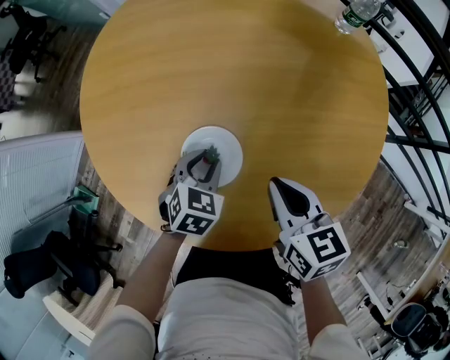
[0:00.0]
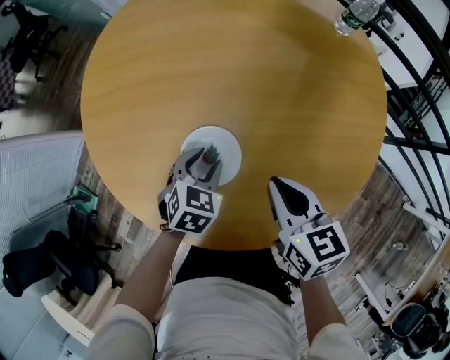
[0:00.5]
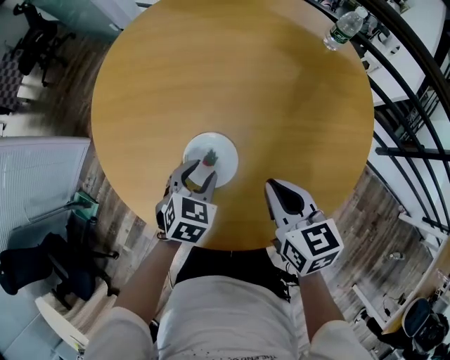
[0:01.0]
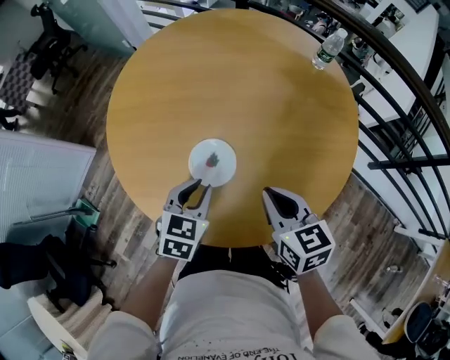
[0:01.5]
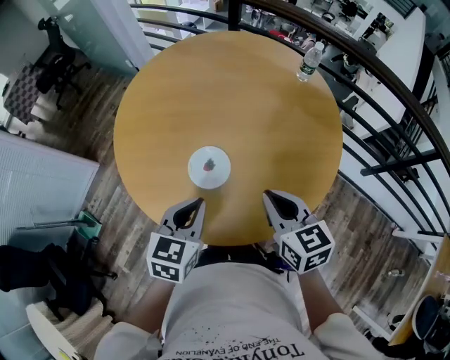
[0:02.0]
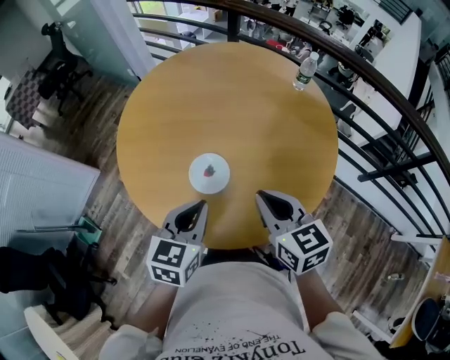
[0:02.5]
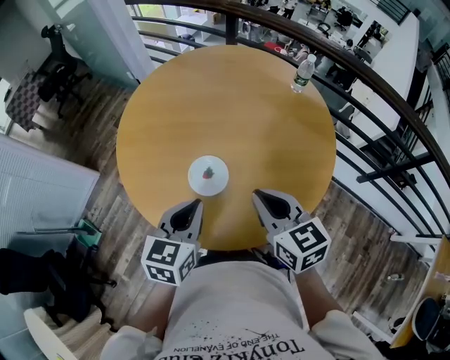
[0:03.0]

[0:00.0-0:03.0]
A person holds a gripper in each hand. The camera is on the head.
0:00.0 to 0:01.5: The left gripper shifts some 15 cm upward and backward. Meanwhile the right gripper moves upward, approximately 5 cm.
0:01.5 to 0:03.0: The right gripper moves upward, about 10 cm; the left gripper is displaced upward and backward by roughly 15 cm.

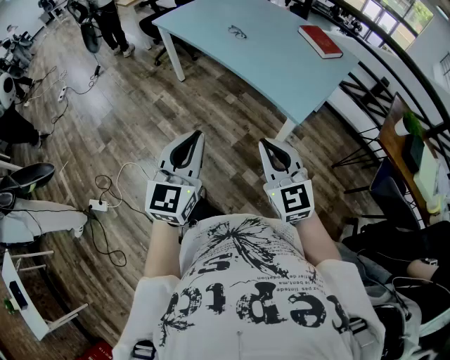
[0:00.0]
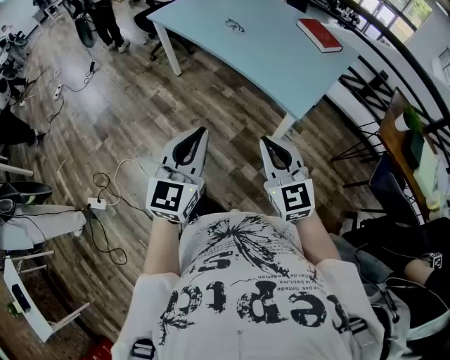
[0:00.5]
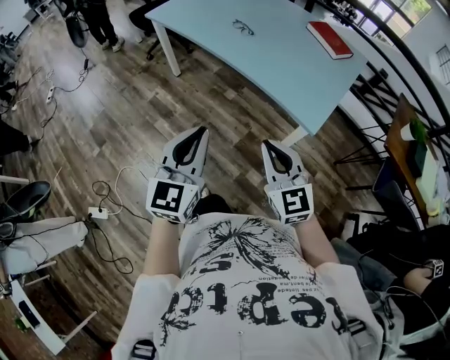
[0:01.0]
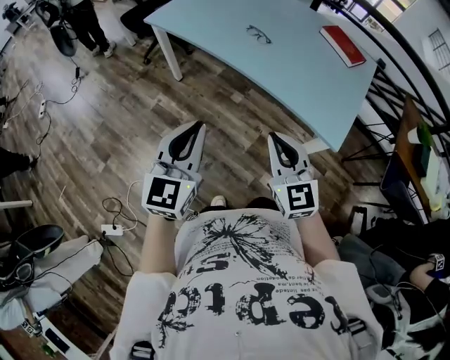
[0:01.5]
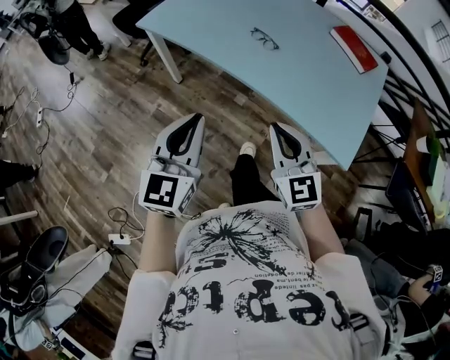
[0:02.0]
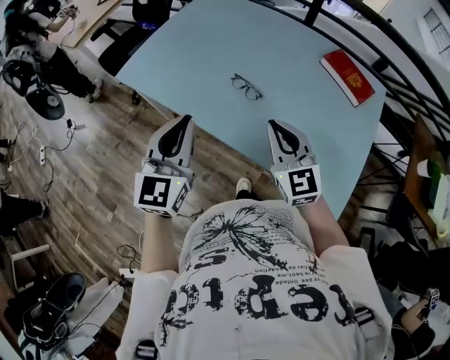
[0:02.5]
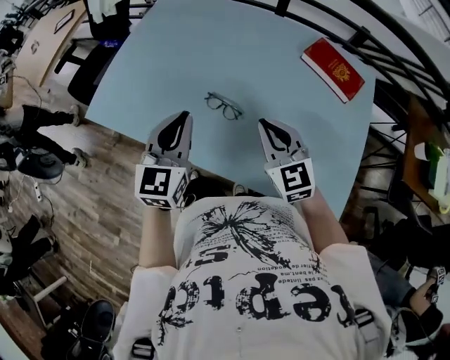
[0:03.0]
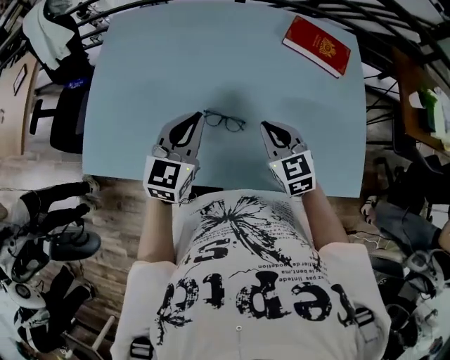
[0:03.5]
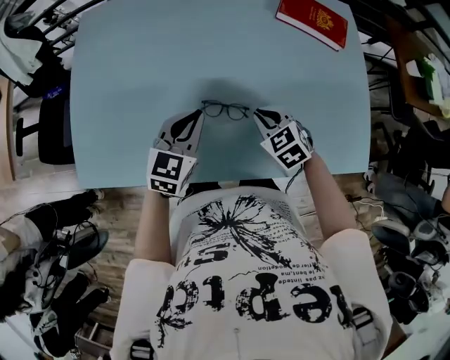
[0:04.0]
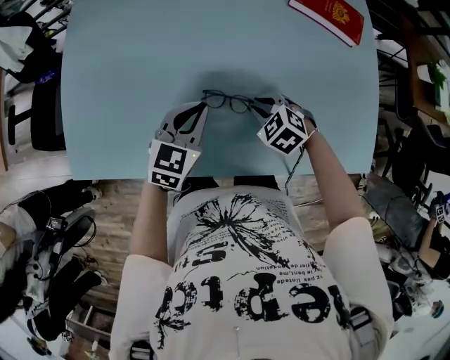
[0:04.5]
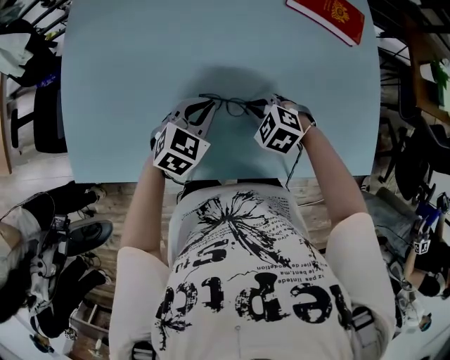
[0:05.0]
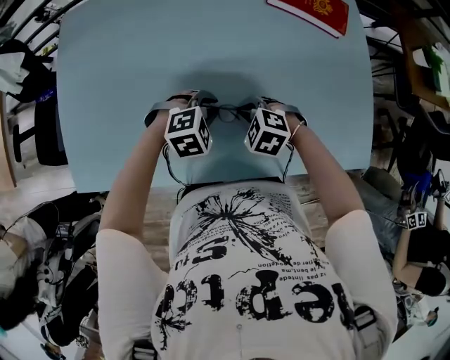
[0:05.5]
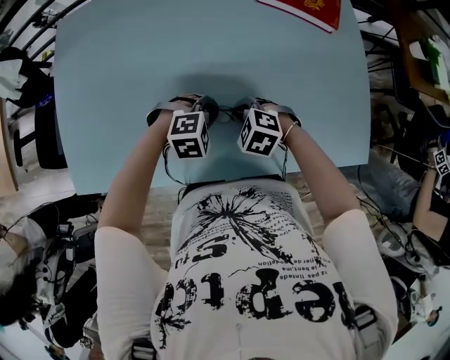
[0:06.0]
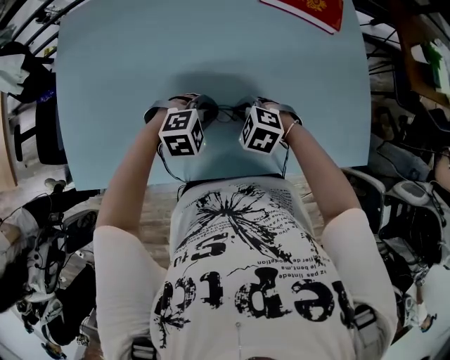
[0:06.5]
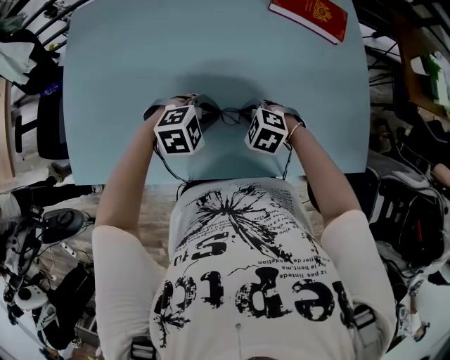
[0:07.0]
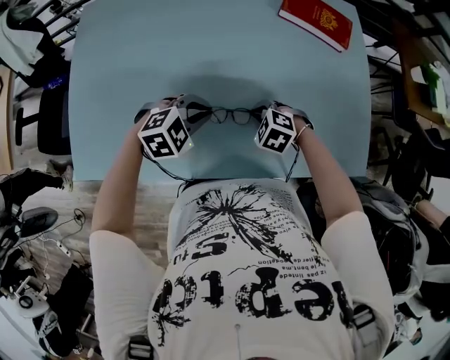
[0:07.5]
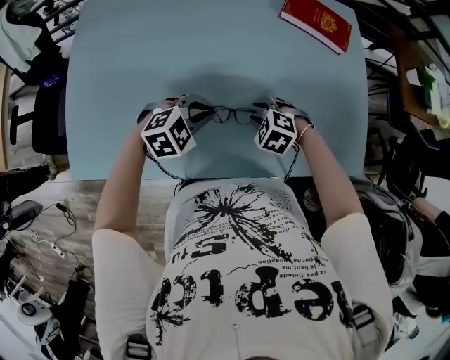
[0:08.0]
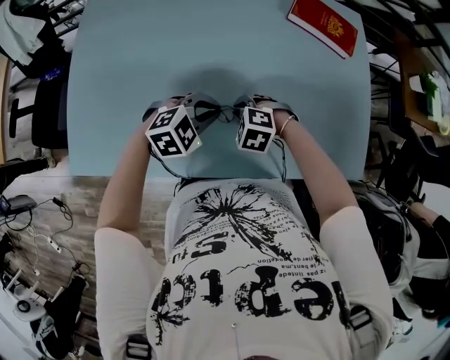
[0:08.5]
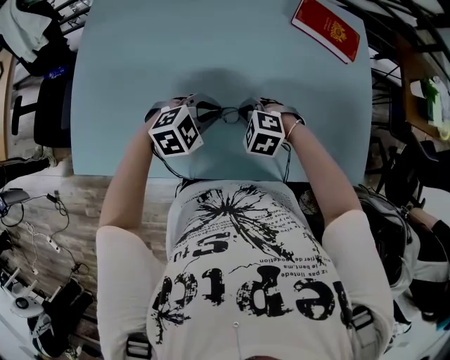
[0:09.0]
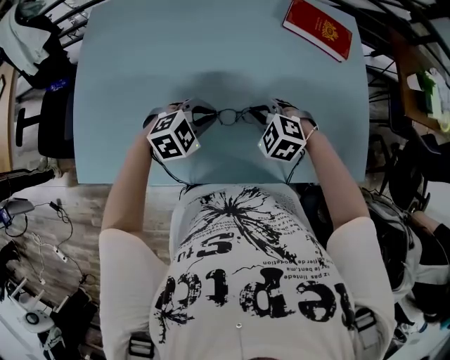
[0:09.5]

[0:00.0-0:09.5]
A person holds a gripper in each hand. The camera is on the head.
0:00.0 to 0:02.0: The two grippers travel together, forward and to the left, about 40 cm.
0:02.0 to 0:04.0: The two grippers travel together, some 50 cm. The left gripper swivels roughly 50 degrees. Meanwhile the right gripper tips its fingers downward by about 40 degrees.
0:04.0 to 0:05.5: The right gripper goes about 5 cm downward, and rotates approximately 30 degrees. The left gripper moves downward and to the right, roughly 15 cm, and tips its fingers downward by some 40 degrees.
0:05.5 to 0:07.5: The left gripper shifts about 5 cm upward.
0:07.5 to 0:09.5: The right gripper travels upward by roughly 5 cm, and opens, then closes again.

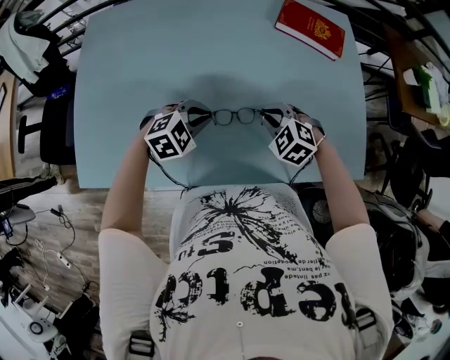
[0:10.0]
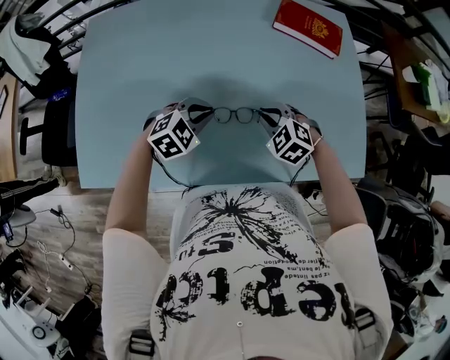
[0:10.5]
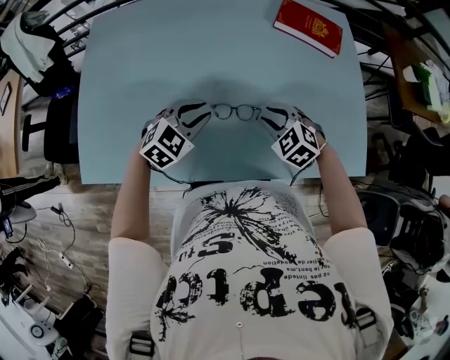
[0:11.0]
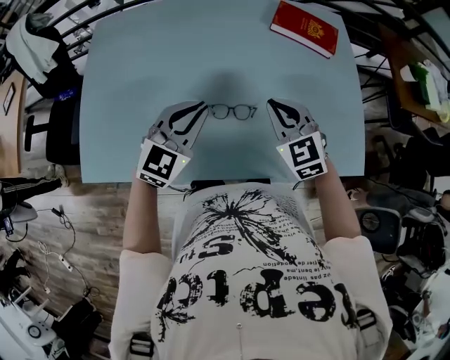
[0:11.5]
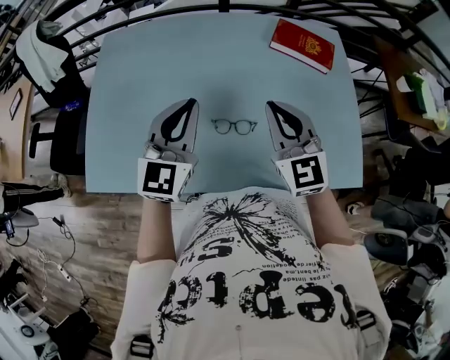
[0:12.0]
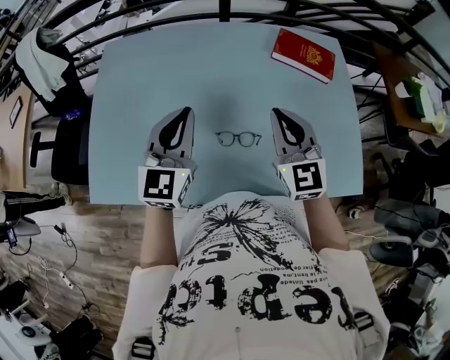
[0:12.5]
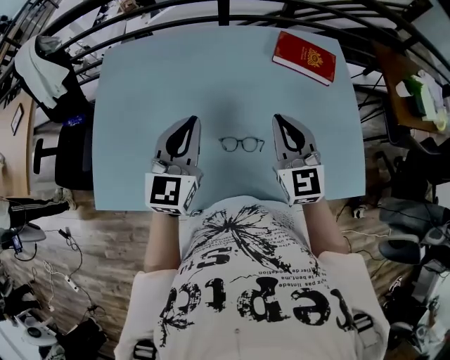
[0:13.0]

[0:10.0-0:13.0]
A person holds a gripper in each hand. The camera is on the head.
0:10.0 to 0:11.5: Both grippers move upward, some 15 cm. The left gripper tilts its fingers roughly 30 degrees upward; the right gripper swivels roughly 30 degrees, and opens and closes again.
0:11.5 to 0:13.0: The right gripper shifts approximately 10 cm upward, and swivels about 20 degrees, while the left gripper is displaced upward and to the left by some 10 cm, and rotates roughly 30 degrees.

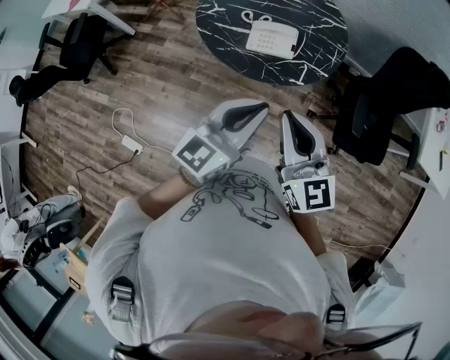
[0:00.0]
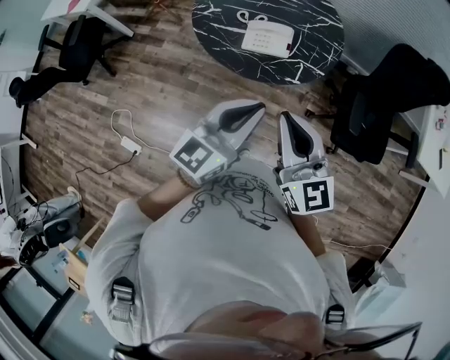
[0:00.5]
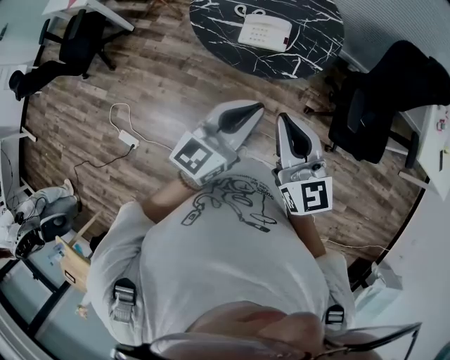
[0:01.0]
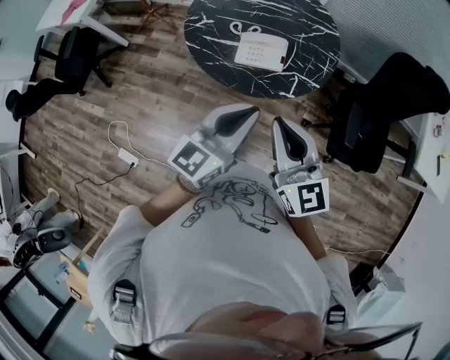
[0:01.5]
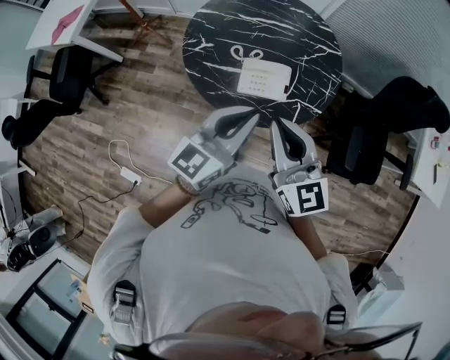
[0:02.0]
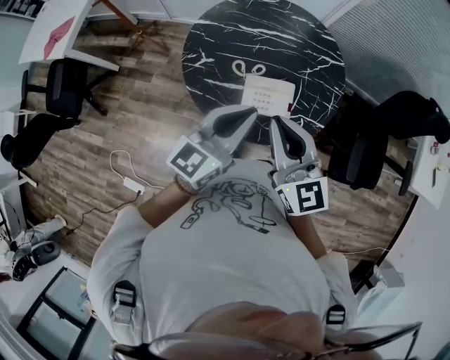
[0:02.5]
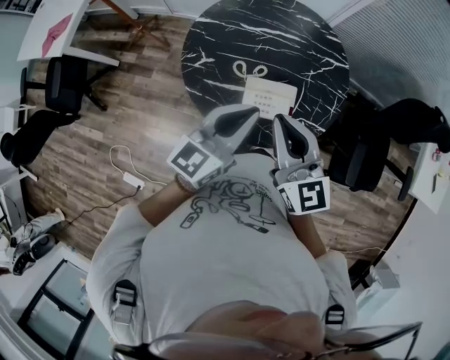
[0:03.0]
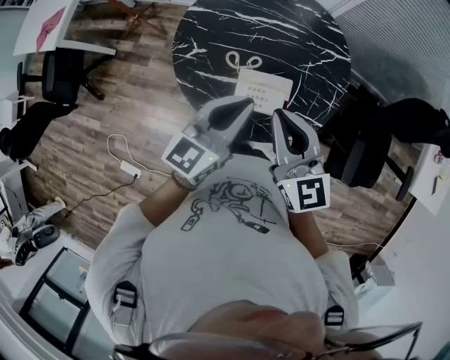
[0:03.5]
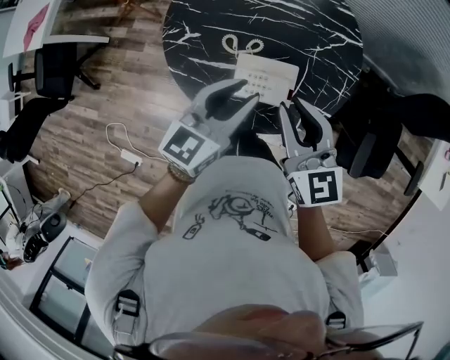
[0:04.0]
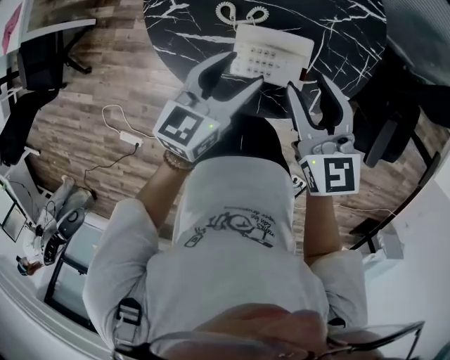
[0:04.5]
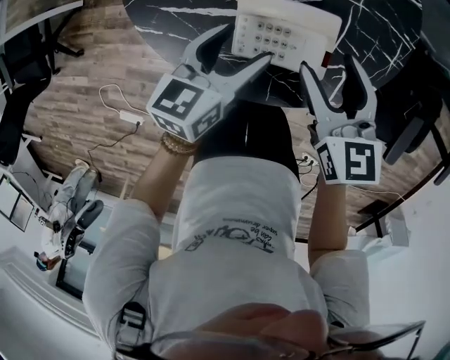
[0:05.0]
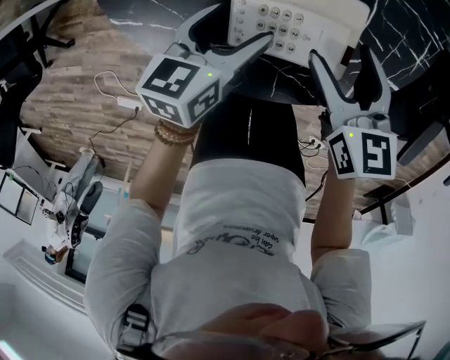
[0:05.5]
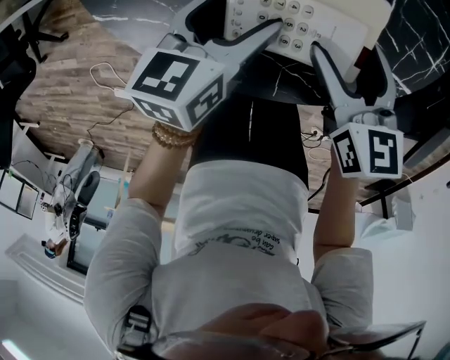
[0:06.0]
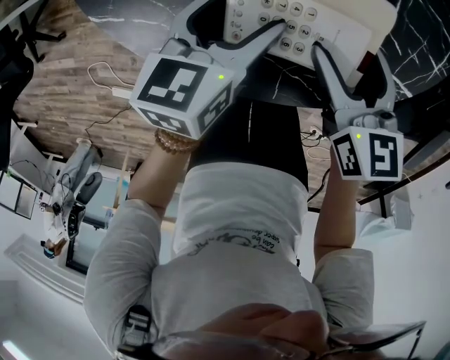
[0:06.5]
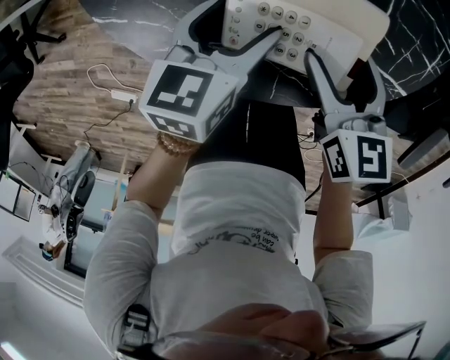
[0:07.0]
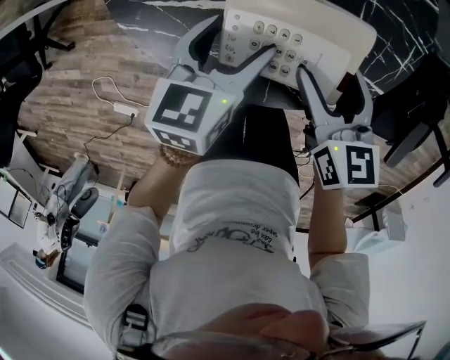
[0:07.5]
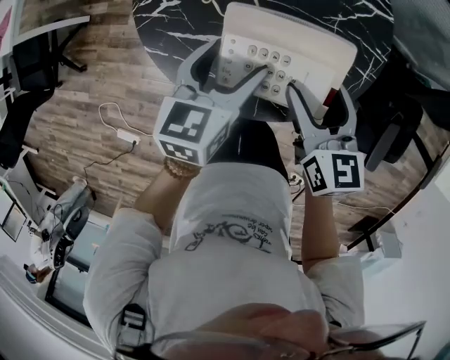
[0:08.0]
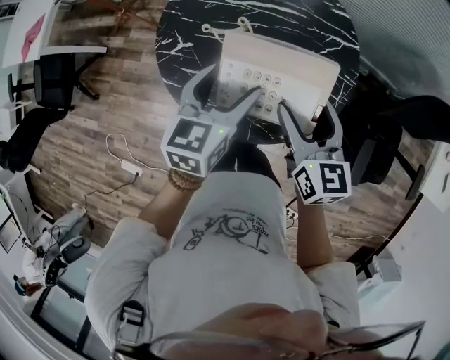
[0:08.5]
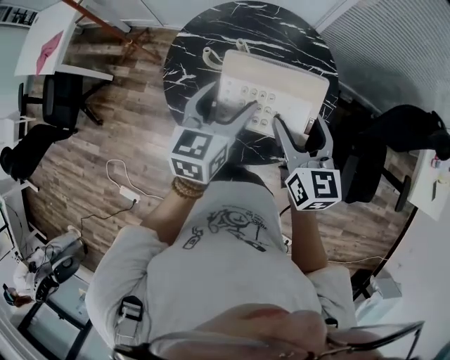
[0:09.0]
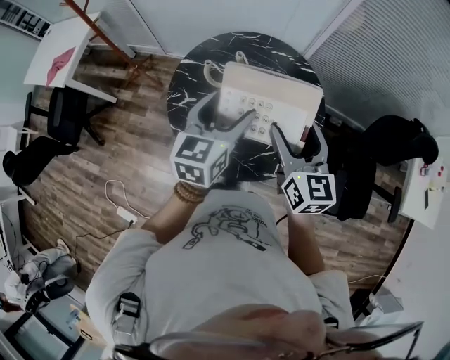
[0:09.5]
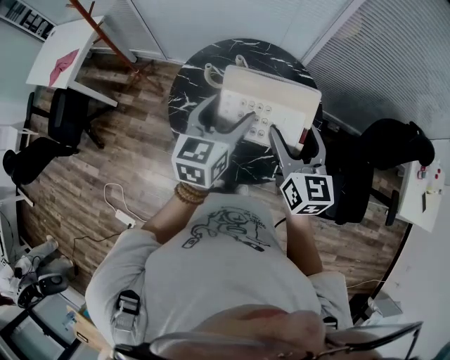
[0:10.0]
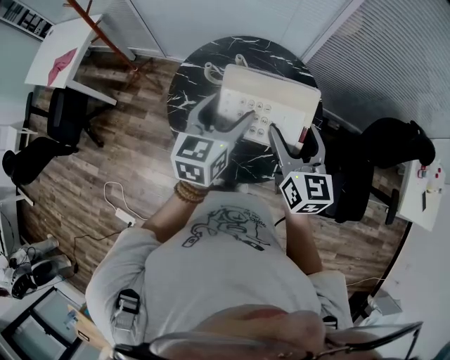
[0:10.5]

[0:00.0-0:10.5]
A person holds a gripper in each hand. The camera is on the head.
0:00.0 to 0:02.0: The grippers both shift forward by approximately 20 cm.
0:02.0 to 0:04.0: The grippers both shift forward and downward by some 20 cm.
0:04.0 to 0:06.5: Both grippers travel together downward, about 35 cm. The left gripper swivels roughly 30 degrees, and opens. The right gripper turns by approximately 30 degrees, and opens.
0:06.5 to 0:08.5: The two grippers go some 35 cm upward.
0:08.5 to 0:10.5: The two grippers go approximately 20 cm upward.
